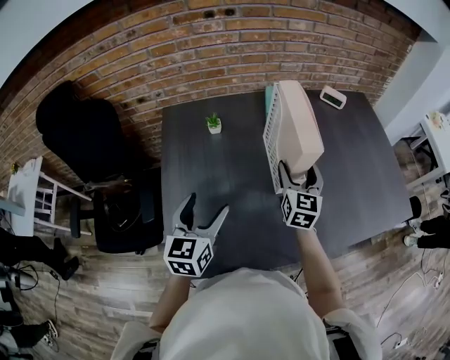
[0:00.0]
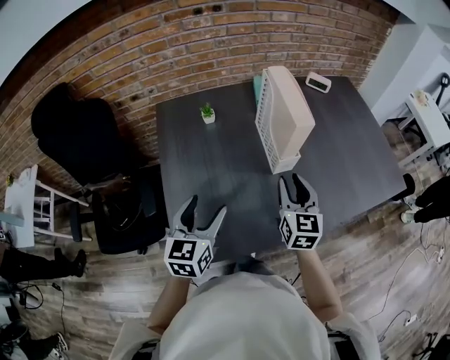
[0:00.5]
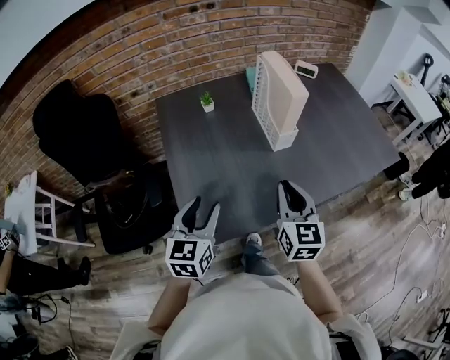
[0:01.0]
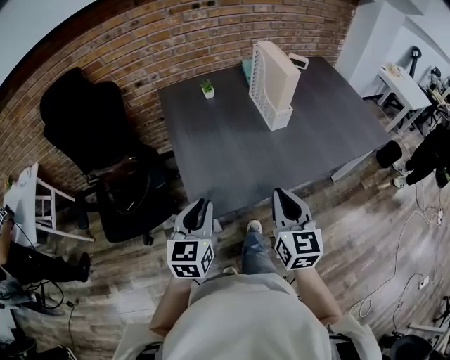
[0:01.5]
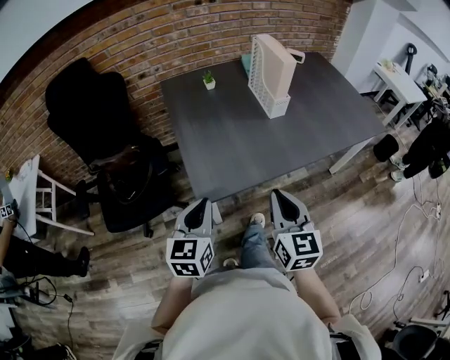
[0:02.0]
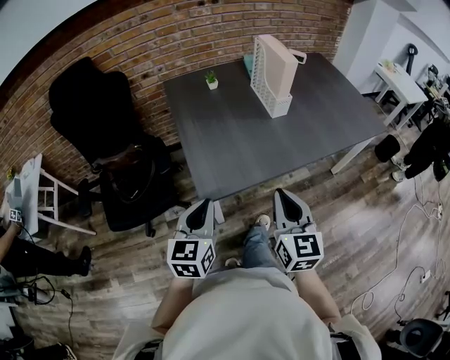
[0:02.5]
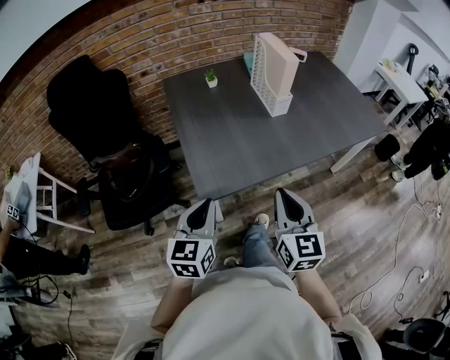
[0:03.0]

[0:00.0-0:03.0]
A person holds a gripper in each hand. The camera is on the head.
0:00.0 to 0:01.5: The left gripper travels backward by approximately 25 cm, and closes up; the right gripper is displaced backward by roughly 40 cm, and closes its fingers.
0:01.5 to 0:03.0: The two grippers go some 5 cm backward.

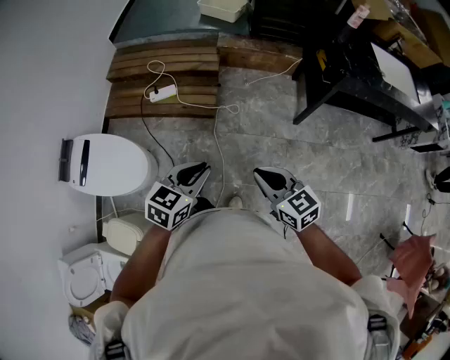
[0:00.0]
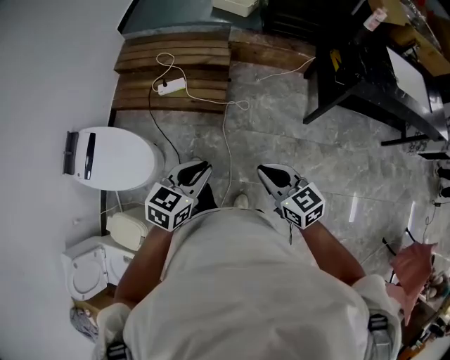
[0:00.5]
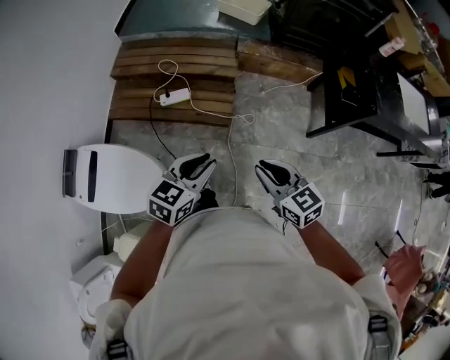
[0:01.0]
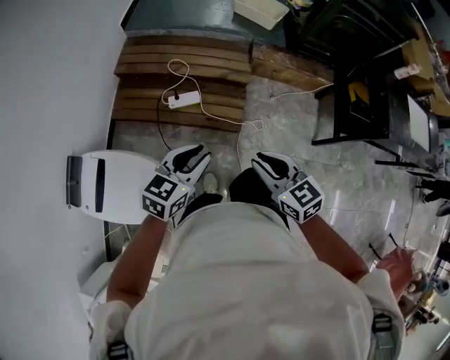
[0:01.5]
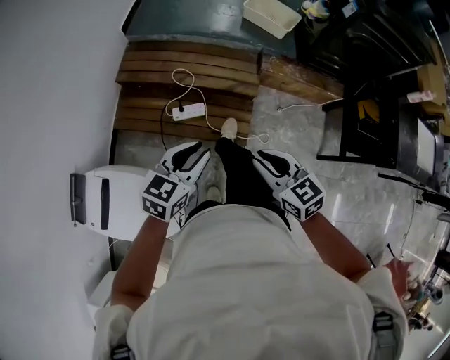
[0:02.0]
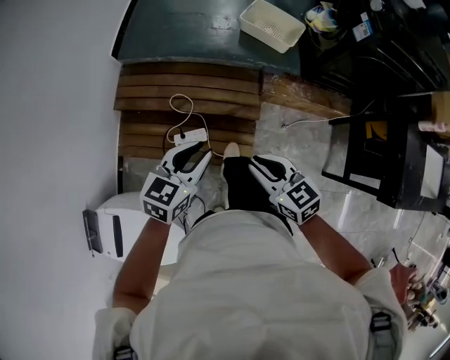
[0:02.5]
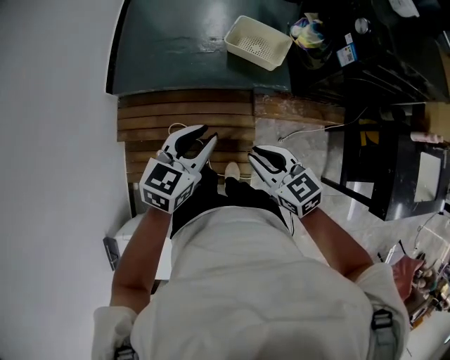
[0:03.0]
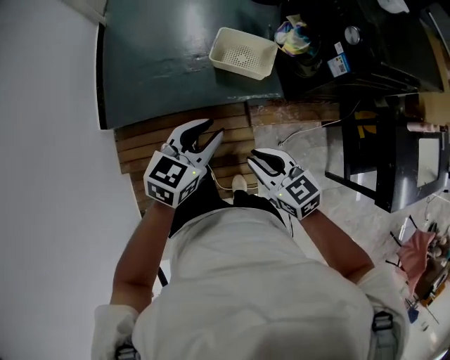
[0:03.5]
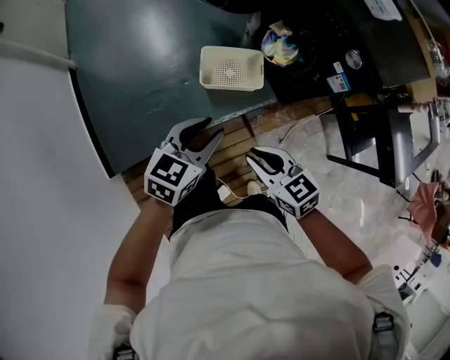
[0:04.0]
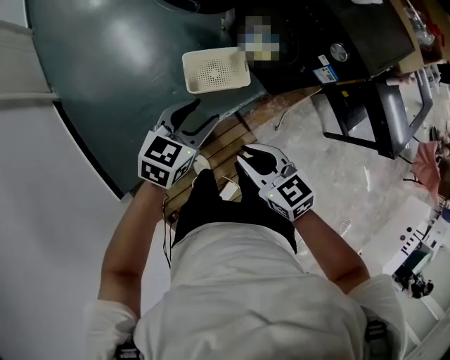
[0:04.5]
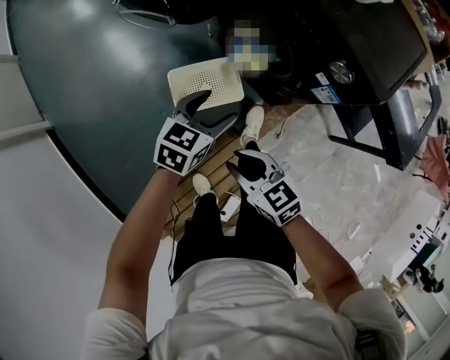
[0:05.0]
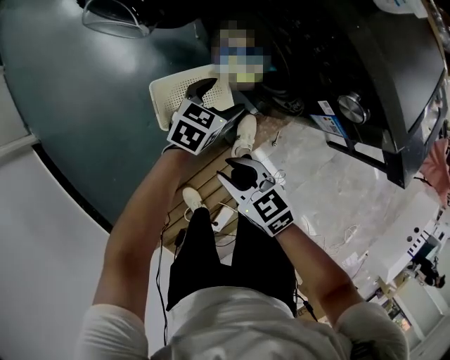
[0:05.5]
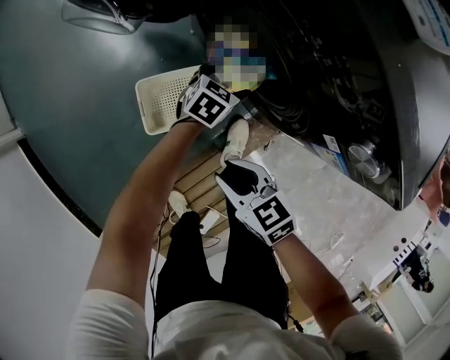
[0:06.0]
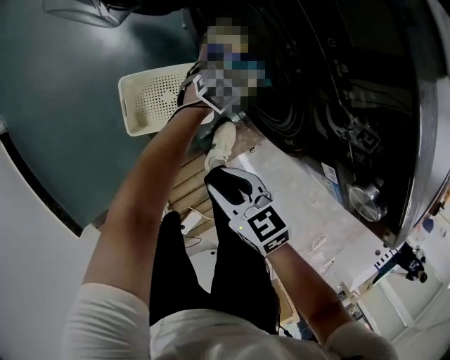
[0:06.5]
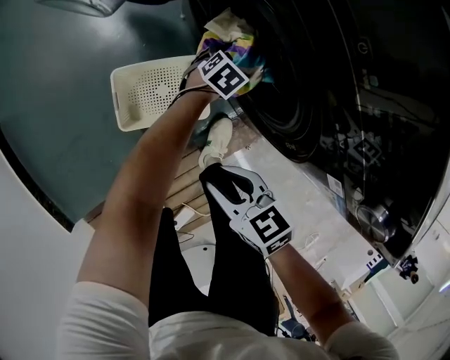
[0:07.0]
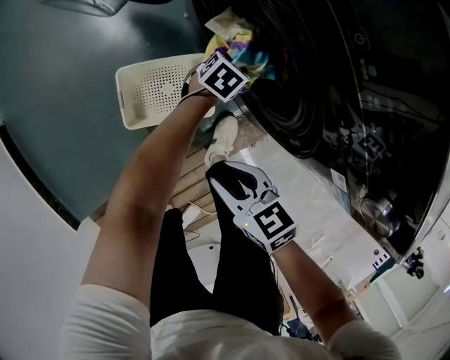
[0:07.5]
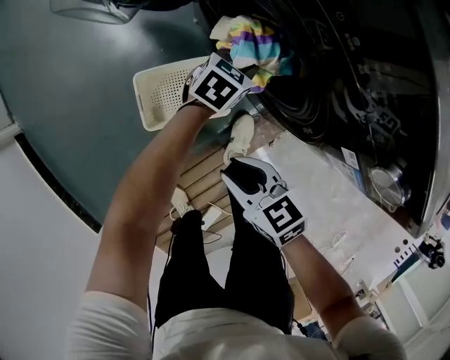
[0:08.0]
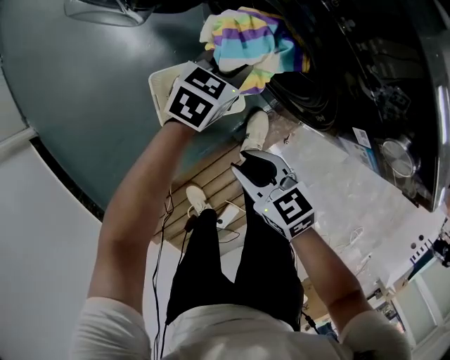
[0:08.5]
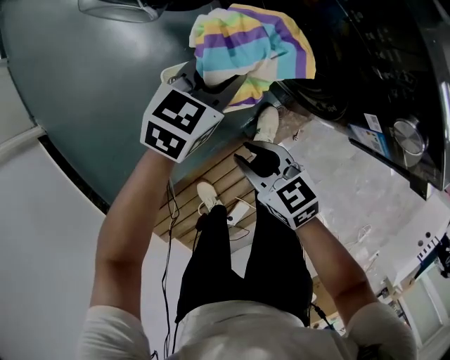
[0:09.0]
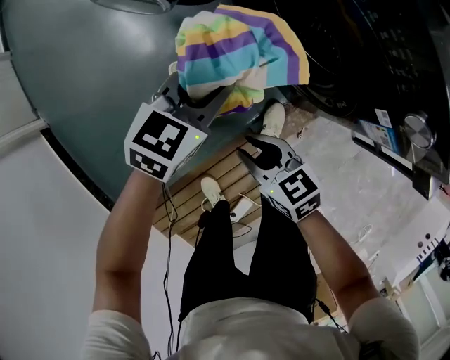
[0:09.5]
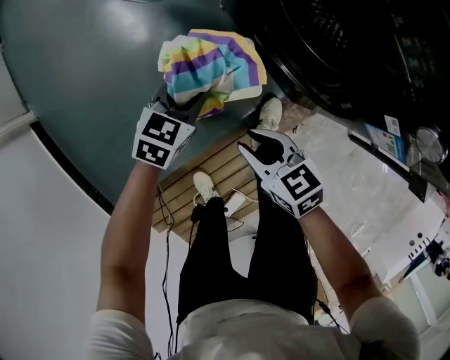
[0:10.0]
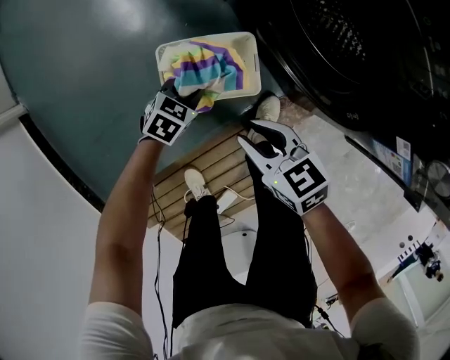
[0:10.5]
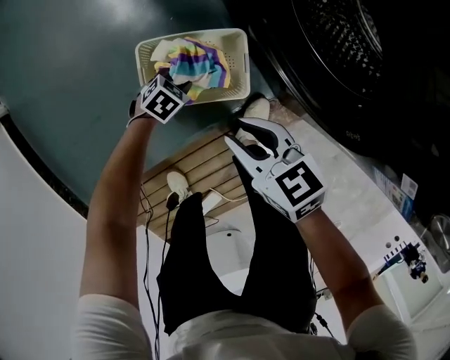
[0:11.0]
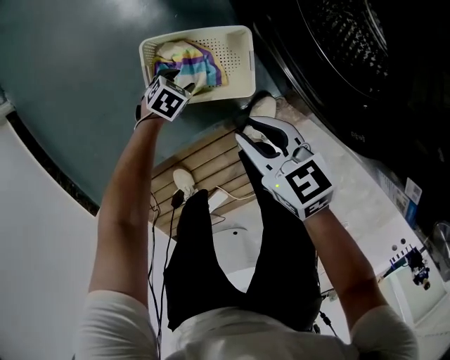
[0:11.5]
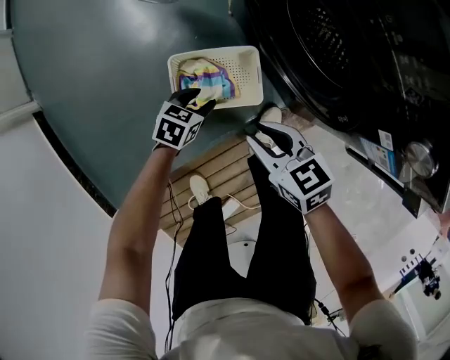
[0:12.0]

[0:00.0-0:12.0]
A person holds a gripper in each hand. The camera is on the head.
0:00.0 to 0:02.0: Both grippers are carried forward and to the left, roughly 50 cm.
0:02.0 to 0:04.0: Both grippers are carried roughly 70 cm. The right gripper changes its angle by roughly 30 degrees, while the left gripper changes its angle by some 40 degrees.
0:04.0 to 0:06.0: The right gripper goes about 35 cm forward and downward. The left gripper travels forward, downward and to the right by roughly 60 cm, changes its angle by approximately 30 degrees, and opens.
0:06.0 to 0:08.0: The left gripper goes downward and returns, approximately 15 cm each way, and closes up.
0:08.0 to 0:10.0: The right gripper goes some 5 cm to the left; the left gripper shifts roughly 25 cm to the left and backward.
0:10.0 to 0:12.0: The left gripper is displaced downward by some 10 cm, while the right gripper travels downward and back again, some 5 cm each way.

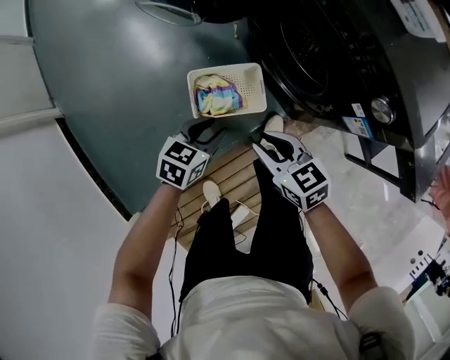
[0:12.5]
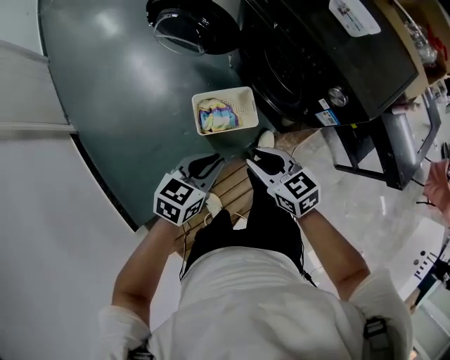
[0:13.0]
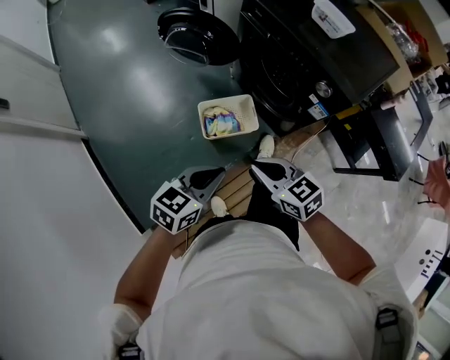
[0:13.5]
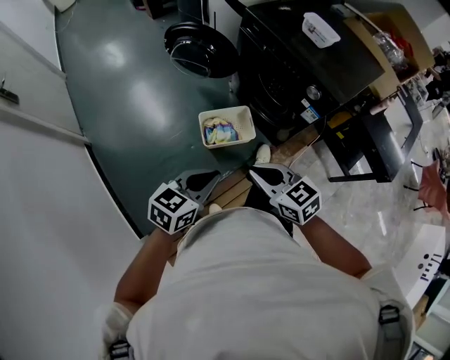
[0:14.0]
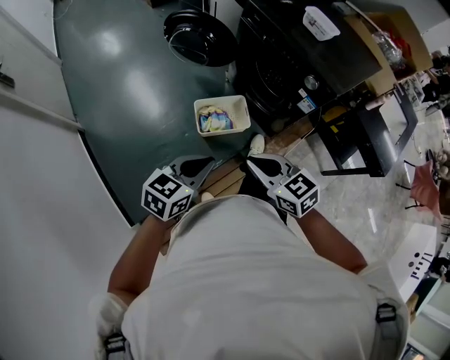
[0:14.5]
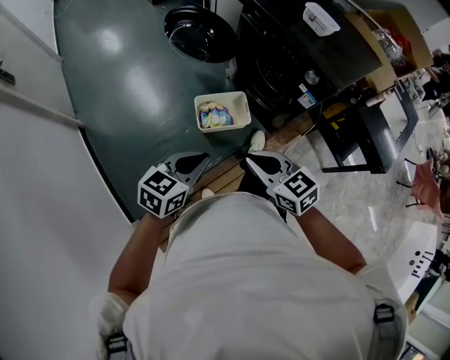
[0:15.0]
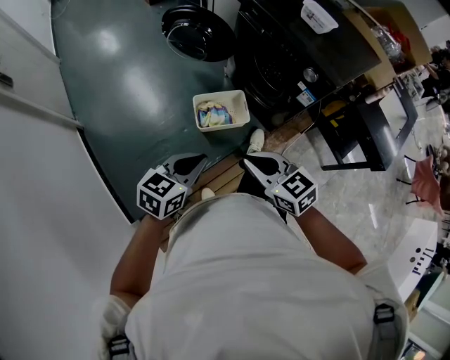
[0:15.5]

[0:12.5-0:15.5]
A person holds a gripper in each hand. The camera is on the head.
0:12.5 to 0:14.0: The grippers both shift upward and backward by approximately 35 cm. The right gripper closes up.
0:14.0 to 0:15.5: The grippers make only small movements.

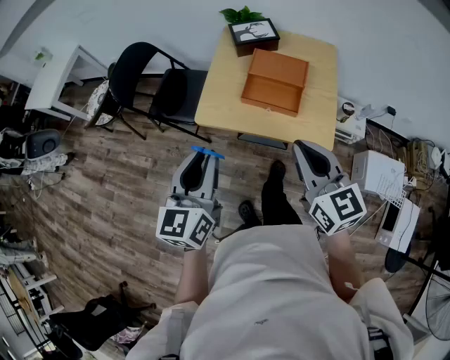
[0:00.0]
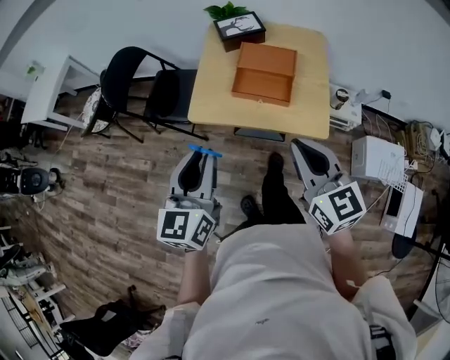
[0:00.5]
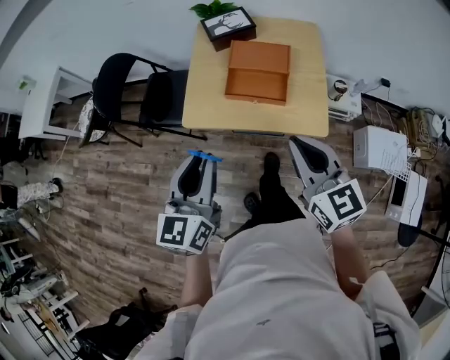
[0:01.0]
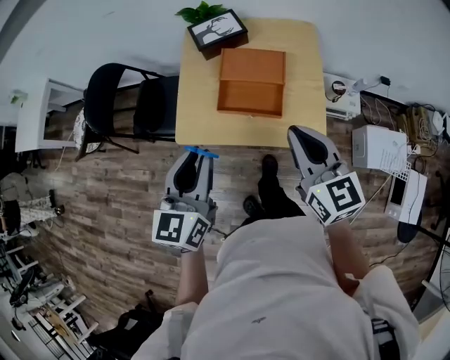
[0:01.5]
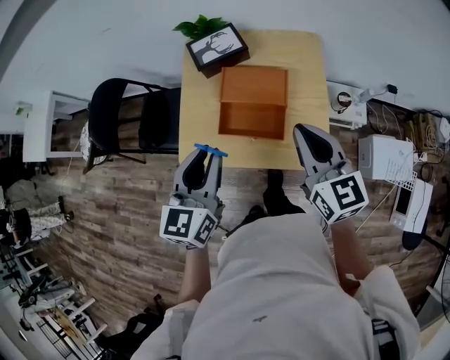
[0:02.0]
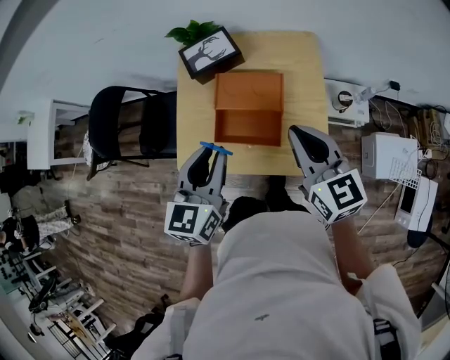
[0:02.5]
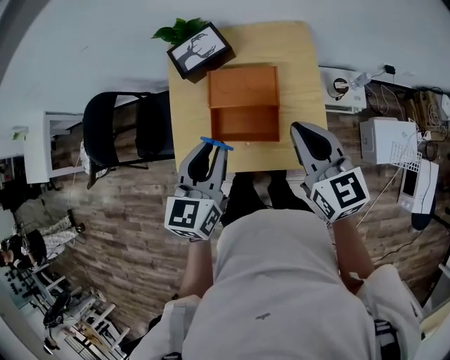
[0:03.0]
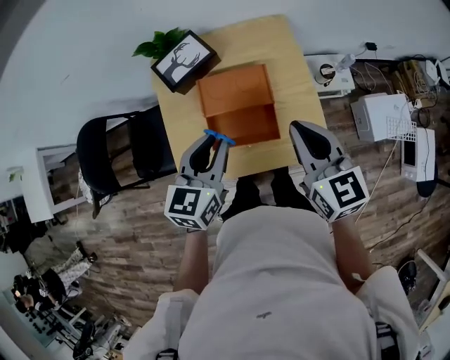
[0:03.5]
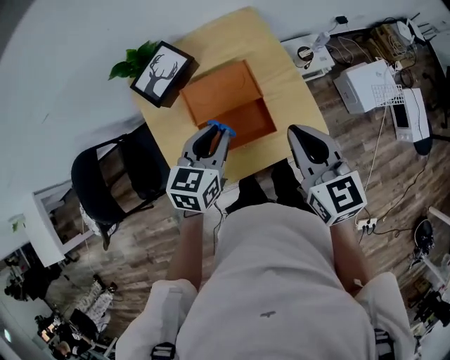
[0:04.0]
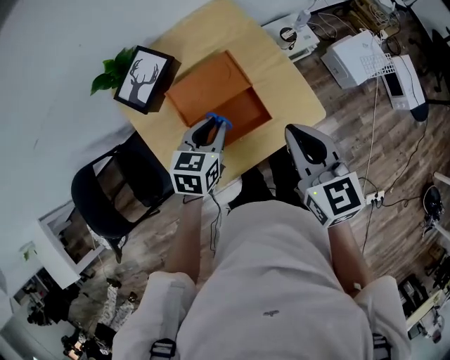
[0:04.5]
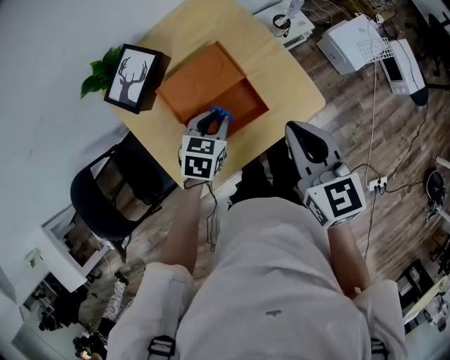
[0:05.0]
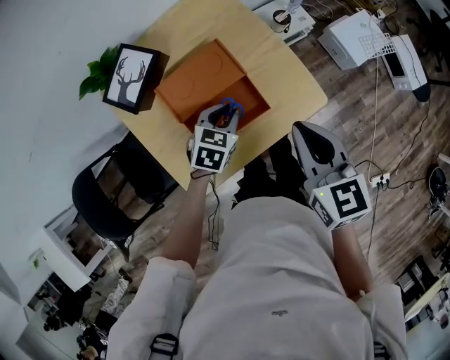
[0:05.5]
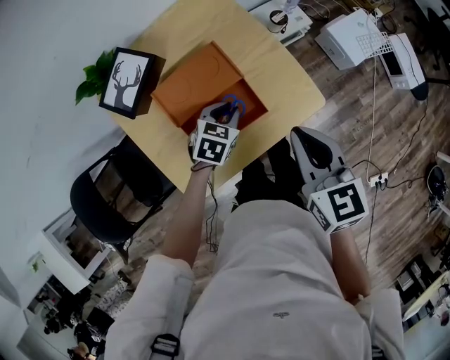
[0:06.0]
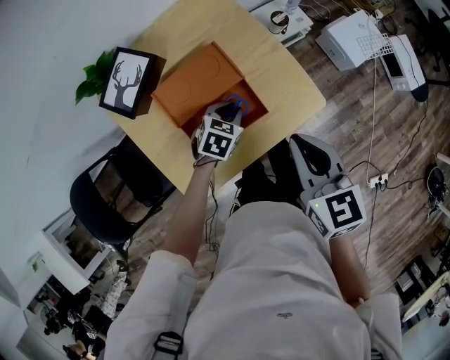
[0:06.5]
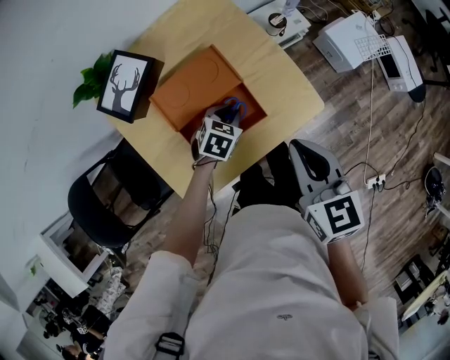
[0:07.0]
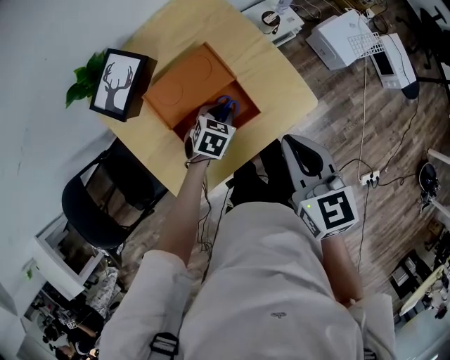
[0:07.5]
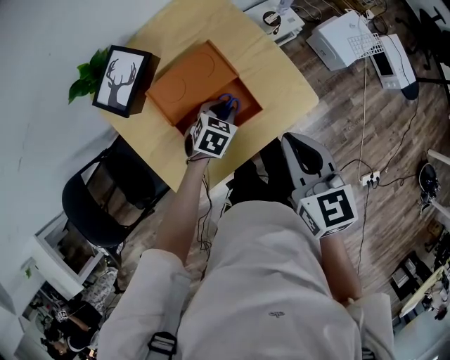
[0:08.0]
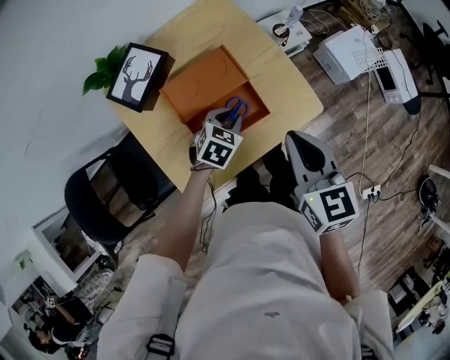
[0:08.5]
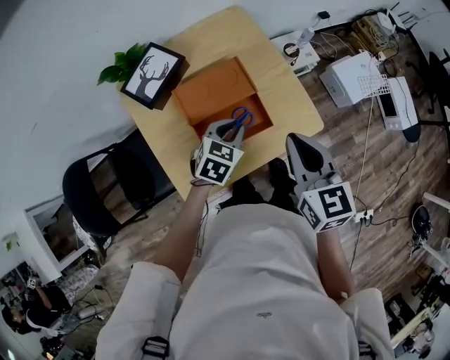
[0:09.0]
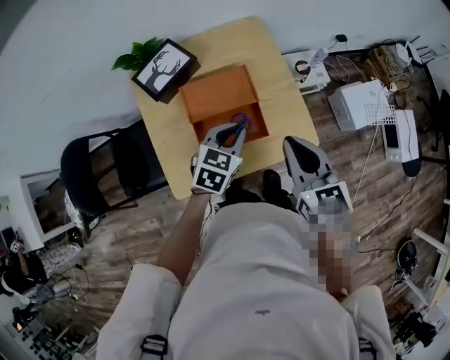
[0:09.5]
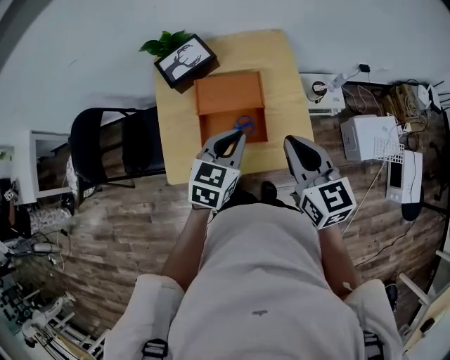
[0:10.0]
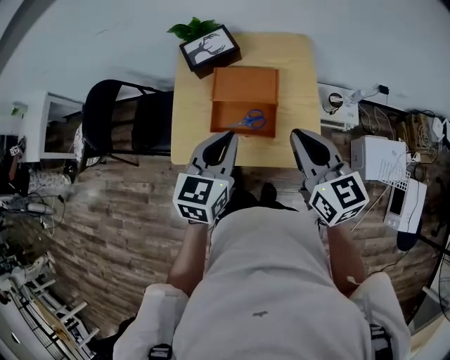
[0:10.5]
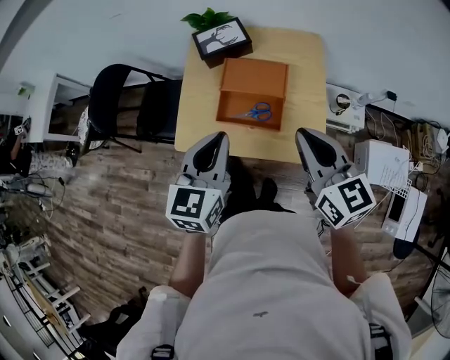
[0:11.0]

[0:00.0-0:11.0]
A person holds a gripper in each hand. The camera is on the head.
0:00.0 to 0:02.0: Both grippers travel together forward and to the right, roughly 25 cm.
0:02.0 to 0:03.5: The left gripper moves forward and downward, some 10 cm, and rotates about 20 degrees.
0:03.5 to 0:05.5: The left gripper is displaced downward by some 20 cm, and swivels approximately 50 degrees. The right gripper changes place by about 10 cm, and turns by some 30 degrees.
0:05.5 to 0:07.5: The left gripper shifts roughly 5 cm downward.
0:07.5 to 0:09.0: The left gripper heads upward, covering about 10 cm.
0:09.0 to 0:11.0: The left gripper shifts some 20 cm upward, and changes its angle by roughly 60 degrees, while the right gripper is displaced upward by some 5 cm, and rotates some 40 degrees.
